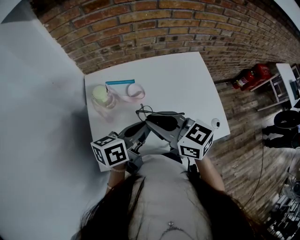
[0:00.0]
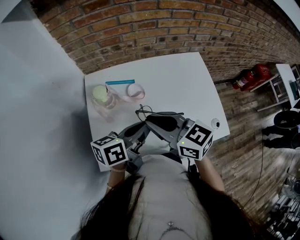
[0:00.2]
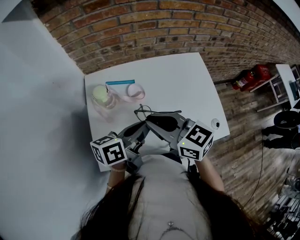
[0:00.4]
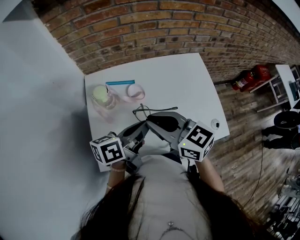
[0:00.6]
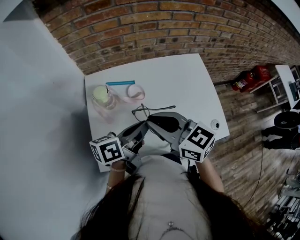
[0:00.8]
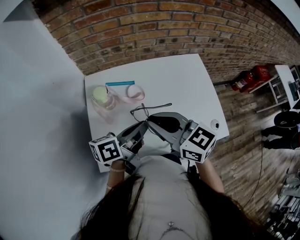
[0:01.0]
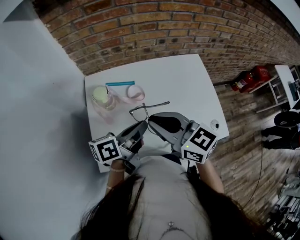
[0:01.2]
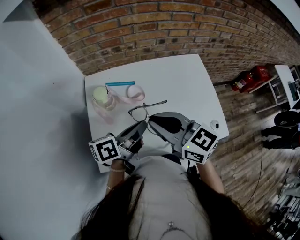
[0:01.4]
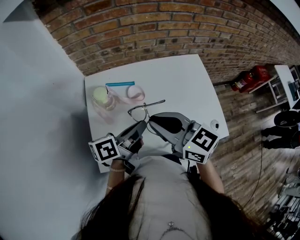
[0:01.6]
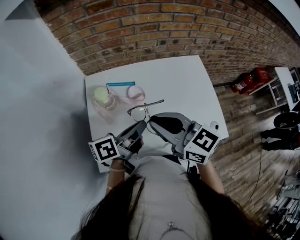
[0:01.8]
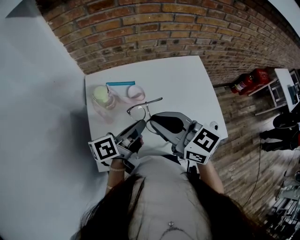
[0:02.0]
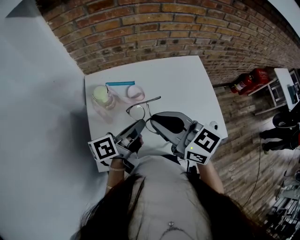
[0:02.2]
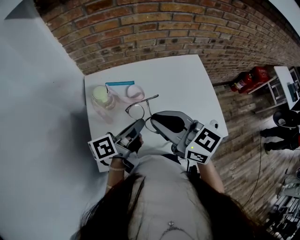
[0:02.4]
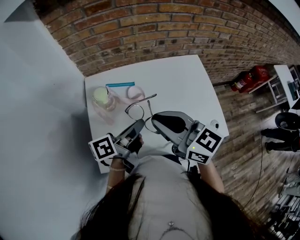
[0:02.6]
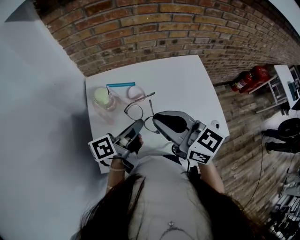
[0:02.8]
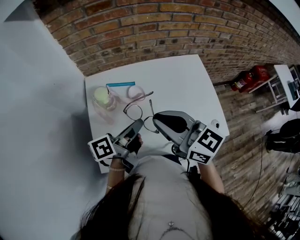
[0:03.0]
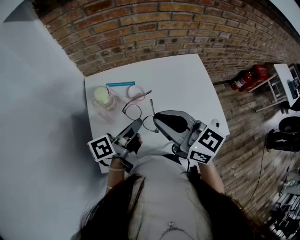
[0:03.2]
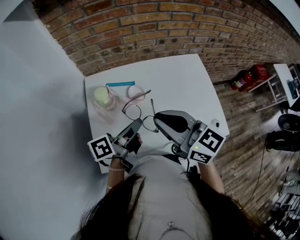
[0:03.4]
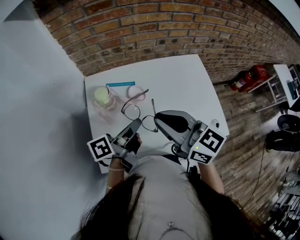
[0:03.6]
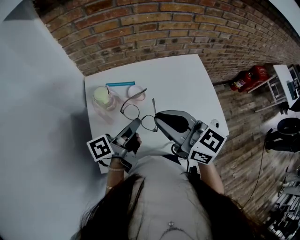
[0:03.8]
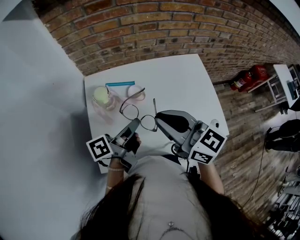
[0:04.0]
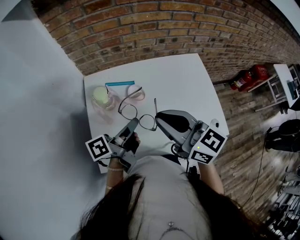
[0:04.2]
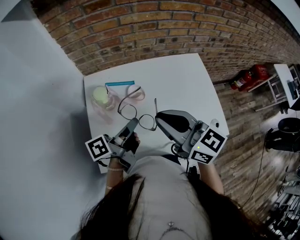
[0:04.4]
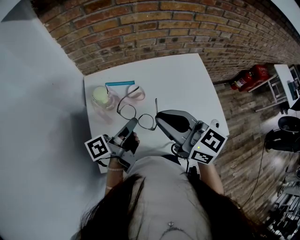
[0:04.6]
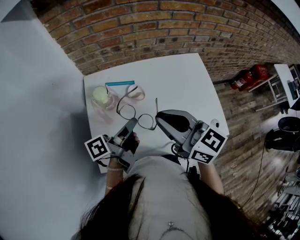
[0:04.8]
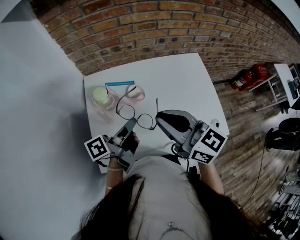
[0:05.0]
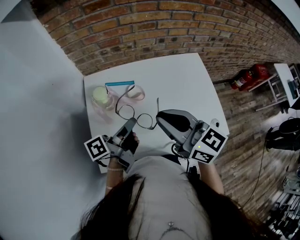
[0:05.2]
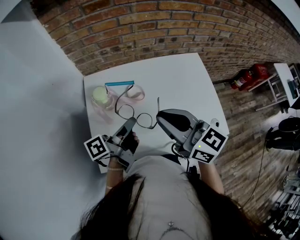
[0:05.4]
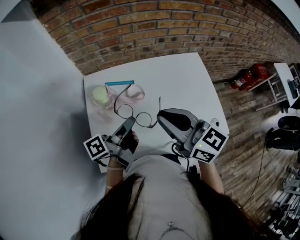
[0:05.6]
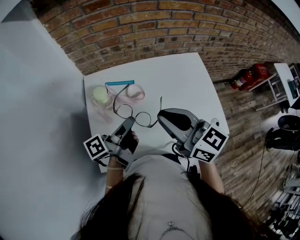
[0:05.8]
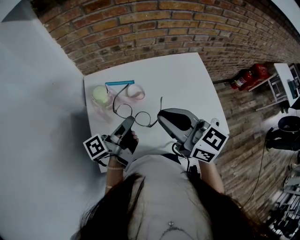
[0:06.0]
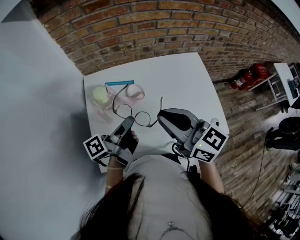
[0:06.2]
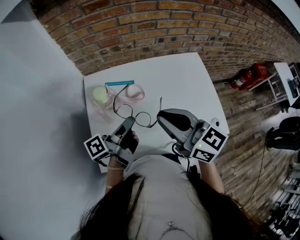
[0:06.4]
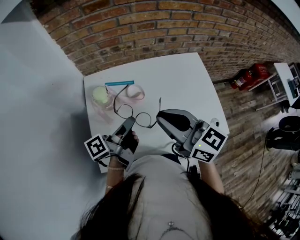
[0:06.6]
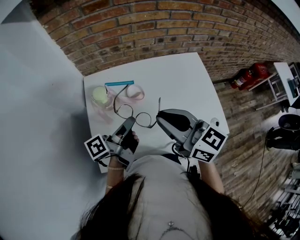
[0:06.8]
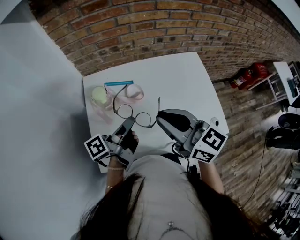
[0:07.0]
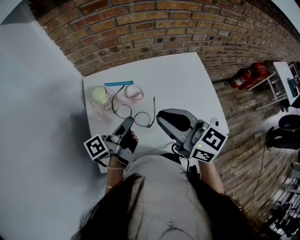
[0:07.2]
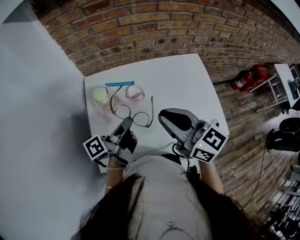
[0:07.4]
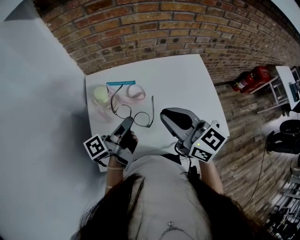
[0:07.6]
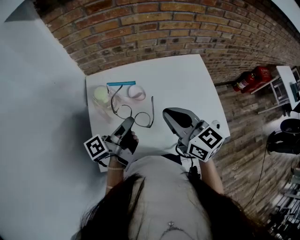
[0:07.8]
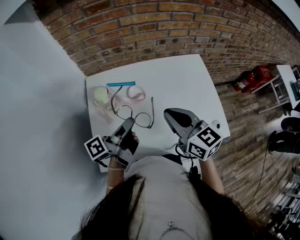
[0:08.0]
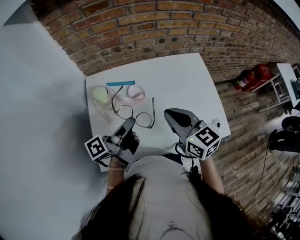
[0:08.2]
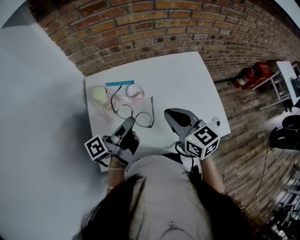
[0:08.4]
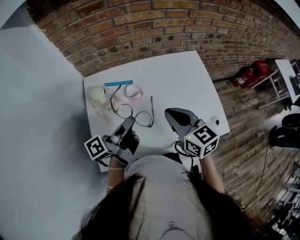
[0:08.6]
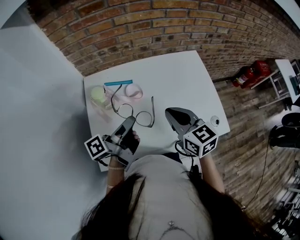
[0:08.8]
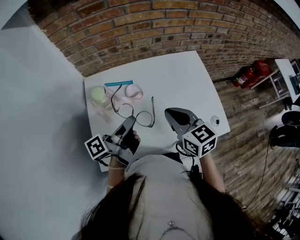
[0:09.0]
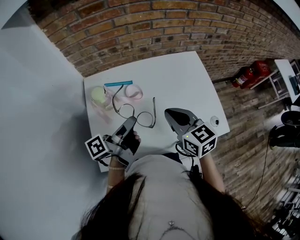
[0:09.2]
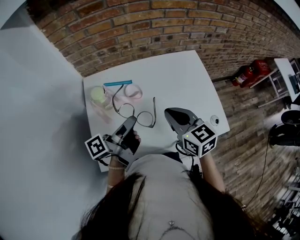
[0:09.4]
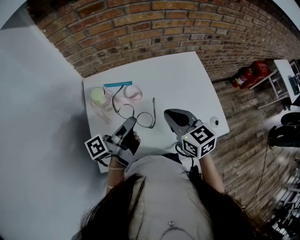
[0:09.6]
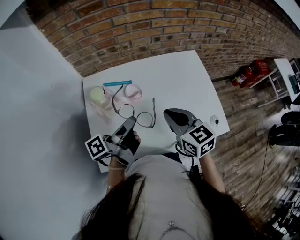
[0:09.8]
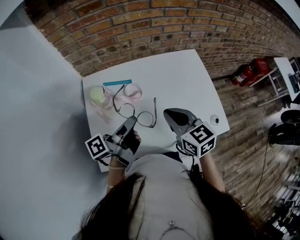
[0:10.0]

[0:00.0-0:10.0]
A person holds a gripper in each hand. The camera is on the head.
0:07.2 to 0:08.6: The right gripper travels downward by some 10 cm, and changes its angle by some 20 degrees.

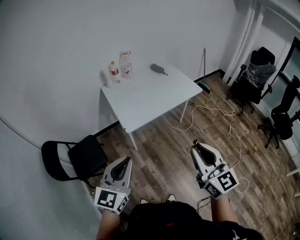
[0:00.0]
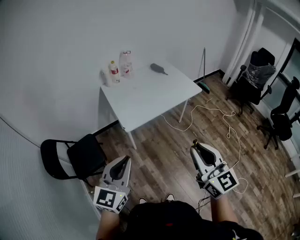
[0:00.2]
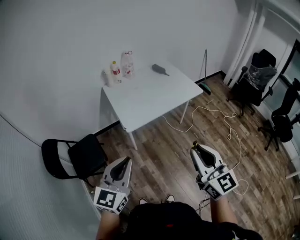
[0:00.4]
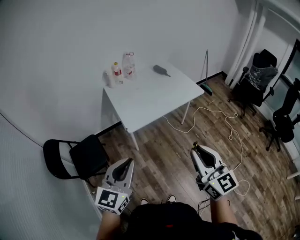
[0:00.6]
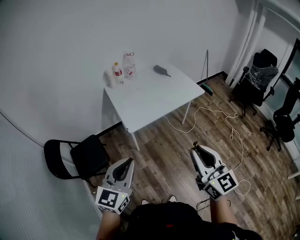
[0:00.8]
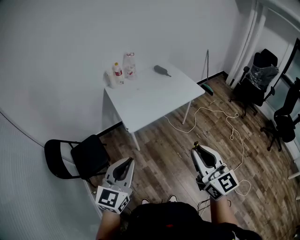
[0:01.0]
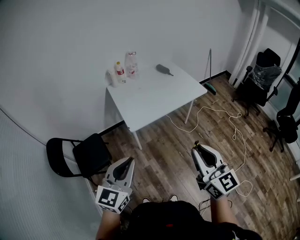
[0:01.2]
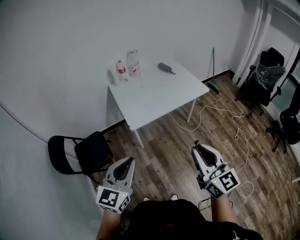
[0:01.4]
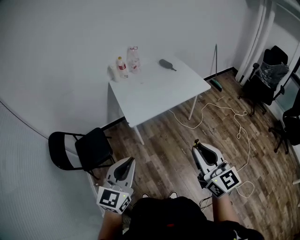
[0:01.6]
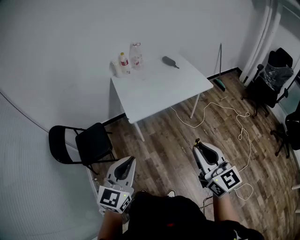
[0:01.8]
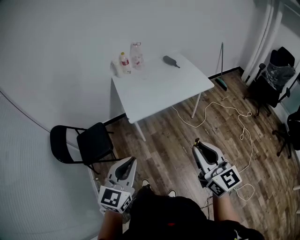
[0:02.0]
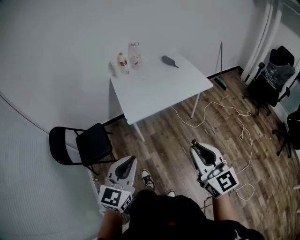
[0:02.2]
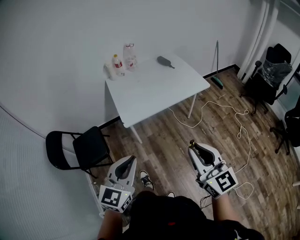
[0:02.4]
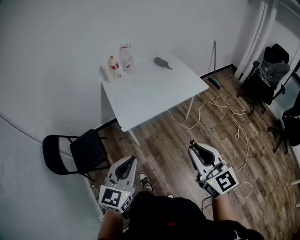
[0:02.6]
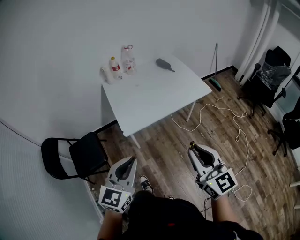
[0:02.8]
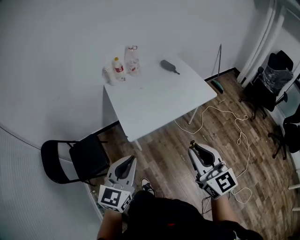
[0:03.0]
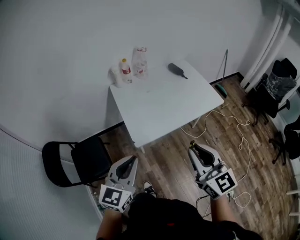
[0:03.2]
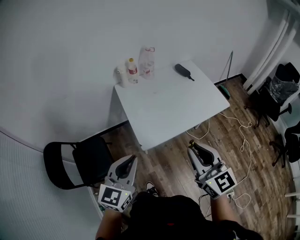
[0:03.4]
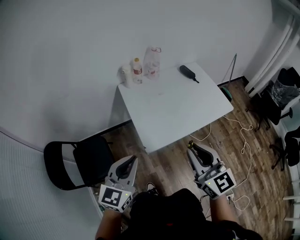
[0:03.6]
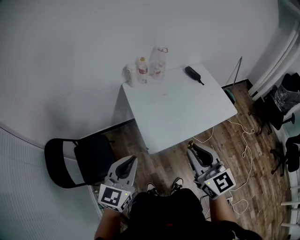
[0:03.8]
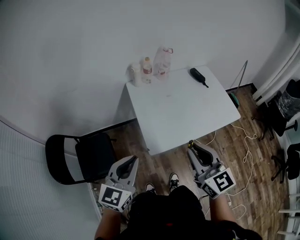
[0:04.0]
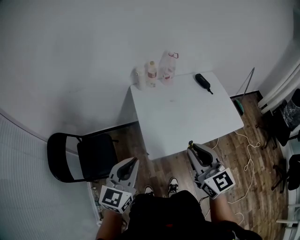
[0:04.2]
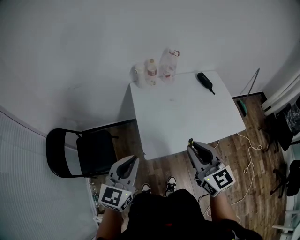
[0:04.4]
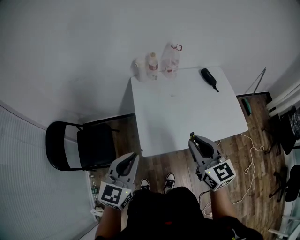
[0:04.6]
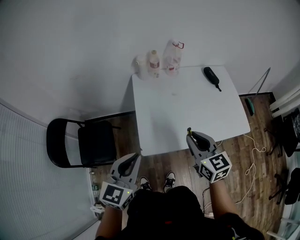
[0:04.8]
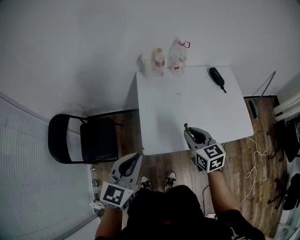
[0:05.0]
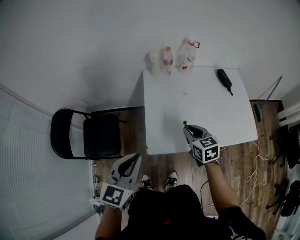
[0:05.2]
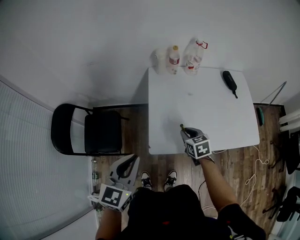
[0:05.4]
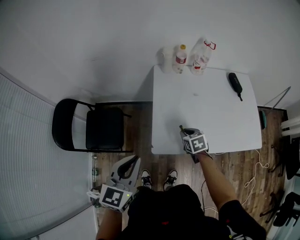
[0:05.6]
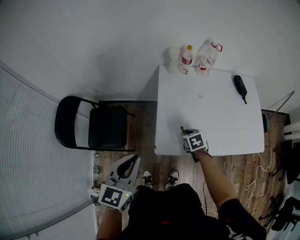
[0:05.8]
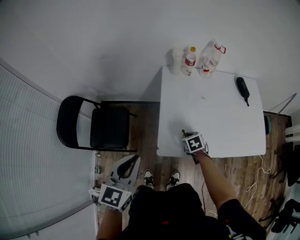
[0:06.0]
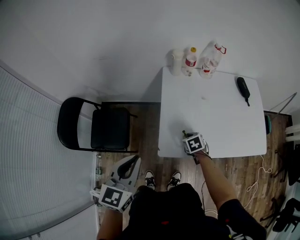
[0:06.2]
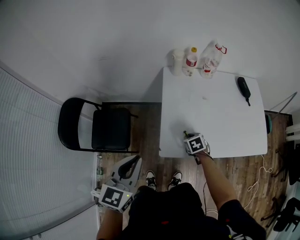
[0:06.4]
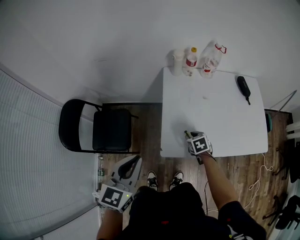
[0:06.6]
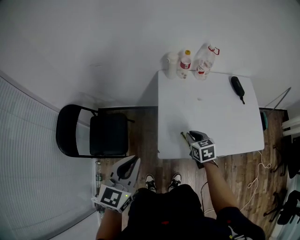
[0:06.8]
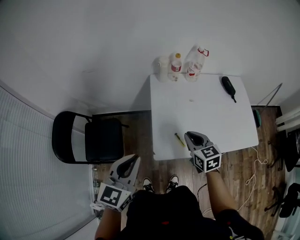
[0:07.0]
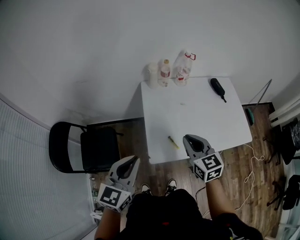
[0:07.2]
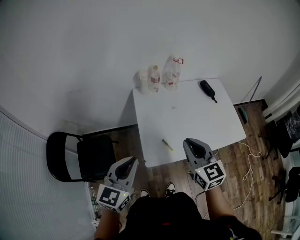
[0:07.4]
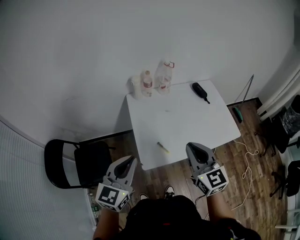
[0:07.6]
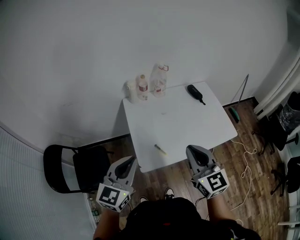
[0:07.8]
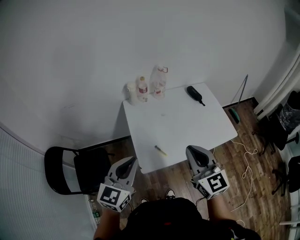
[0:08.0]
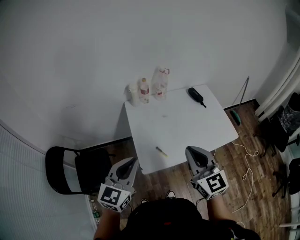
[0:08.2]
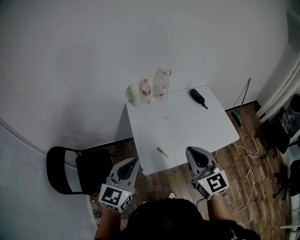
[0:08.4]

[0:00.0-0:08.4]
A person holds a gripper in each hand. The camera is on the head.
0:00.0 to 0:01.4: The grippers stay close to where they were, moving slightly.
0:01.4 to 0:02.8: The left gripper shifts roughly 10 cm forward and to the right; the right gripper heads forward and downward, covering about 10 cm.
0:02.8 to 0:04.2: Both grippers travel together forward and to the left, roughly 30 cm.
0:04.2 to 0:05.6: The left gripper moves roughly 10 cm to the right and comes back. Meanwhile the right gripper moves downward and forward, approximately 40 cm, and tips its fingers downward by some 50 degrees.
0:05.6 to 0:07.0: The right gripper shifts roughly 15 cm upward, and rotates approximately 20 degrees.
0:07.0 to 0:08.4: The right gripper moves upward and backward, approximately 20 cm, and changes its angle by roughly 30 degrees. The left gripper moves to the right and upward, roughly 10 cm.

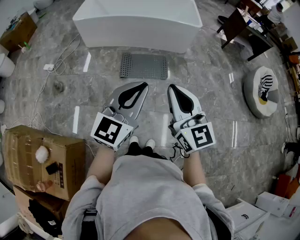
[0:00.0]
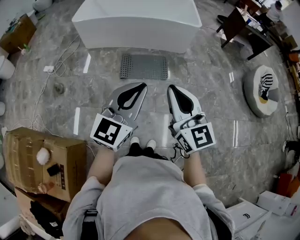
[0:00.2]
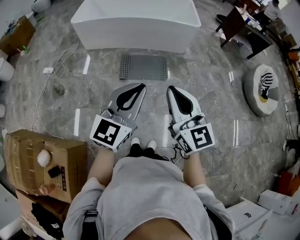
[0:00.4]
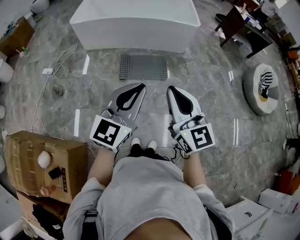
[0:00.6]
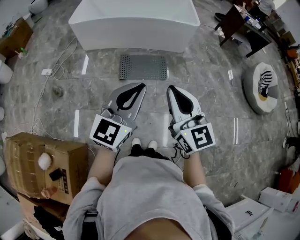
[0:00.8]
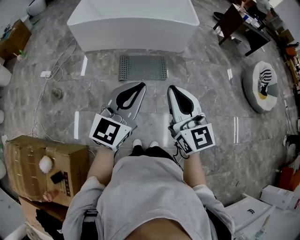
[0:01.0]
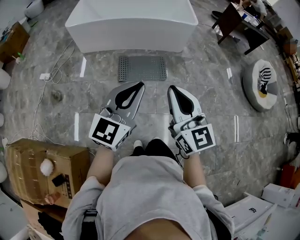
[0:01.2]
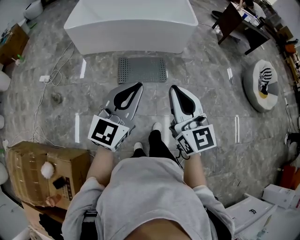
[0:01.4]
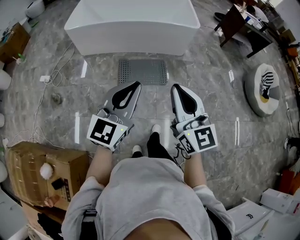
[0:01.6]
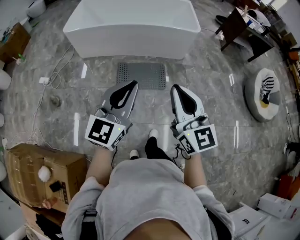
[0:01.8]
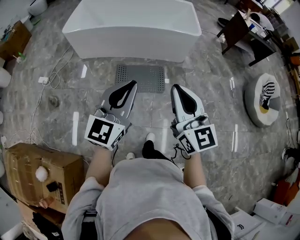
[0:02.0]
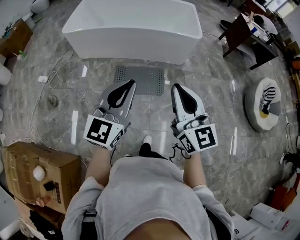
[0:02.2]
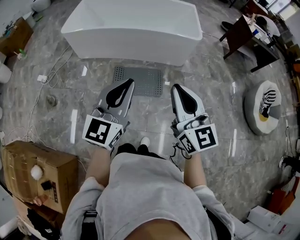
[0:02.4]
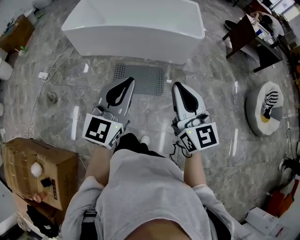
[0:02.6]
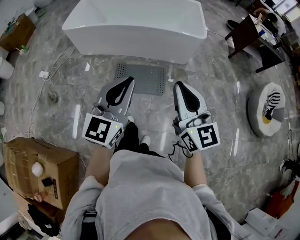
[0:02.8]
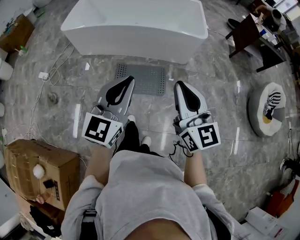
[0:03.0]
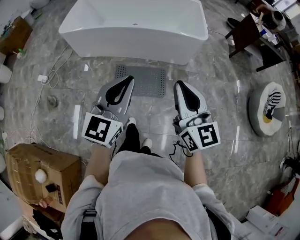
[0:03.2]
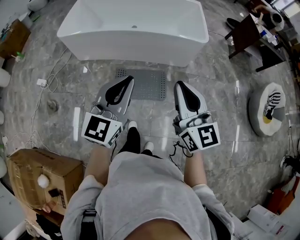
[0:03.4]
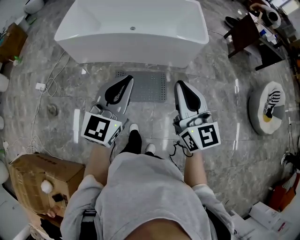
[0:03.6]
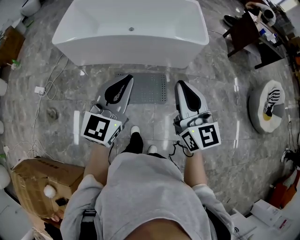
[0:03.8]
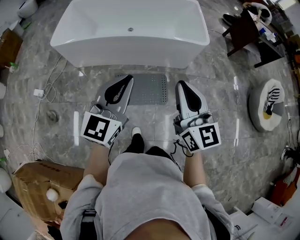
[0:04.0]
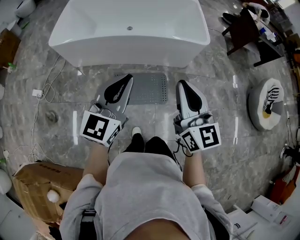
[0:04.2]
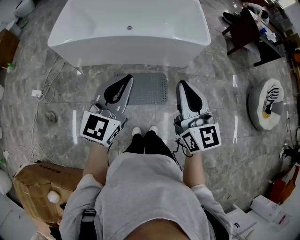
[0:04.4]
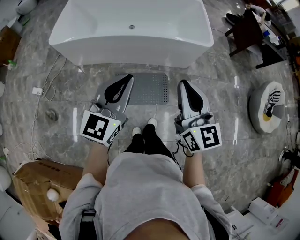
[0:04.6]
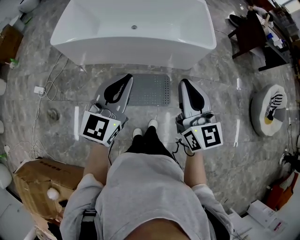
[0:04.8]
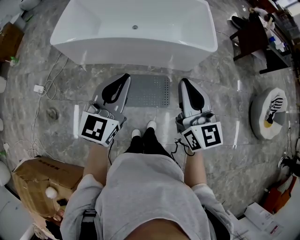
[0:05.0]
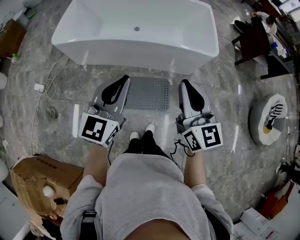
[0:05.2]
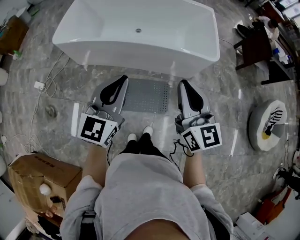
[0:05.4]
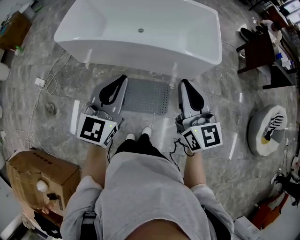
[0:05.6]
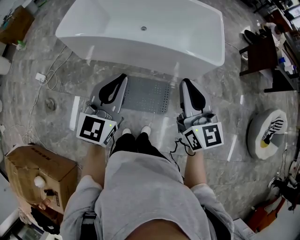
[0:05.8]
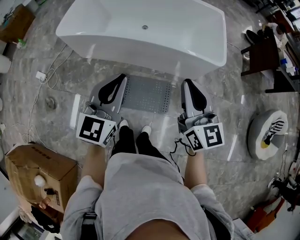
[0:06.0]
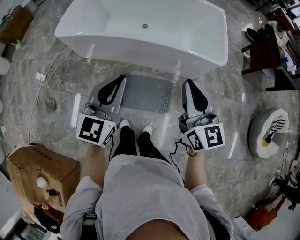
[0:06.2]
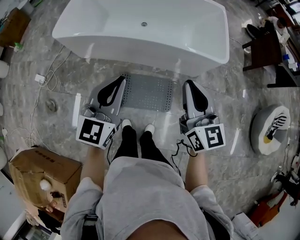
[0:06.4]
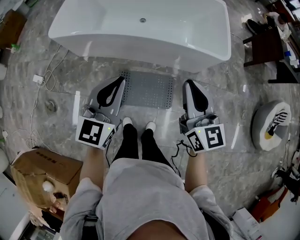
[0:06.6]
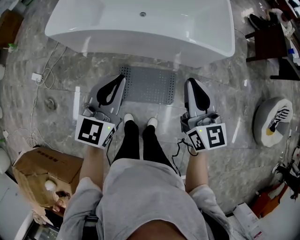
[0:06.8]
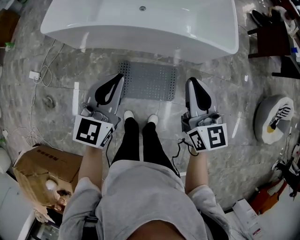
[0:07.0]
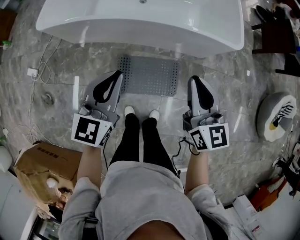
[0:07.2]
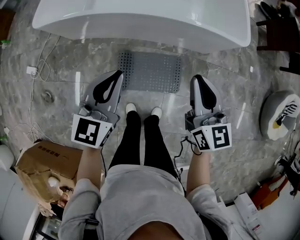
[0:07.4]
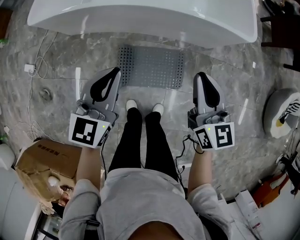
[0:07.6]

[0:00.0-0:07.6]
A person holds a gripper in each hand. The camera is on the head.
0:00.0 to 0:01.6: Both grippers travel together forward, approximately 10 cm.
0:01.6 to 0:03.0: The left gripper shifts roughly 20 cm forward. The right gripper goes roughly 25 cm forward and to the right.
0:03.0 to 0:04.6: Both grippers travel together forward and to the left, about 25 cm.
0:04.6 to 0:06.0: Both grippers travel together forward, approximately 15 cm.
0:06.0 to 0:07.6: The left gripper is displaced downward and forward by approximately 25 cm; the right gripper shifts roughly 25 cm downward.
